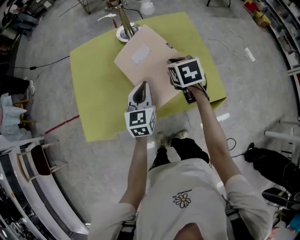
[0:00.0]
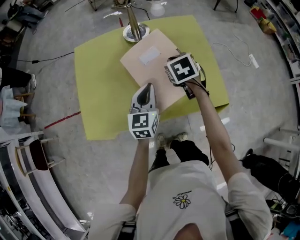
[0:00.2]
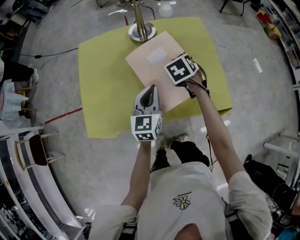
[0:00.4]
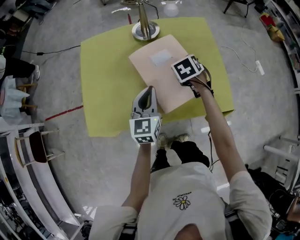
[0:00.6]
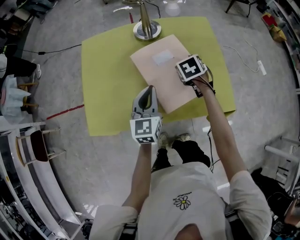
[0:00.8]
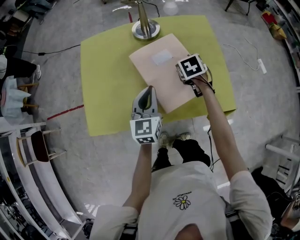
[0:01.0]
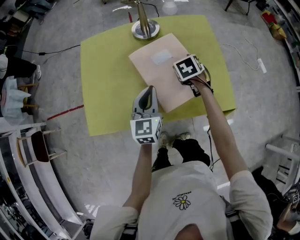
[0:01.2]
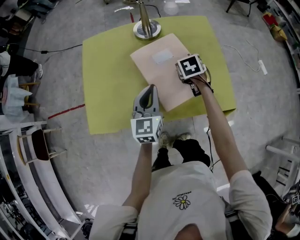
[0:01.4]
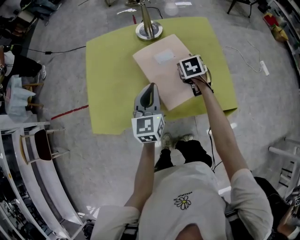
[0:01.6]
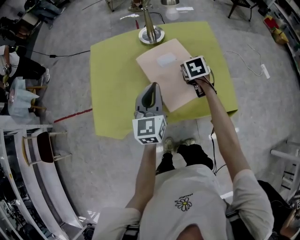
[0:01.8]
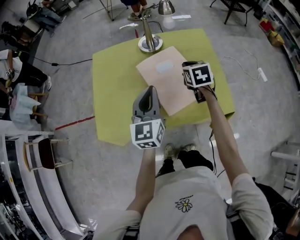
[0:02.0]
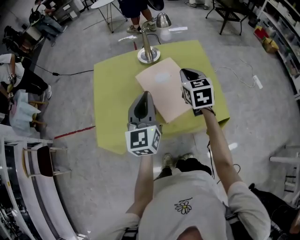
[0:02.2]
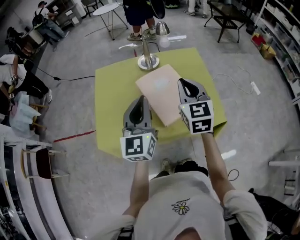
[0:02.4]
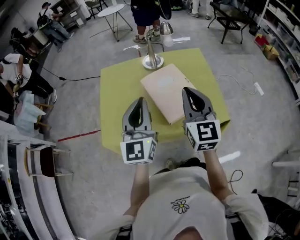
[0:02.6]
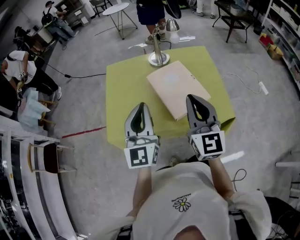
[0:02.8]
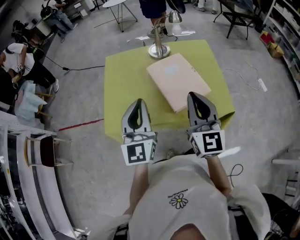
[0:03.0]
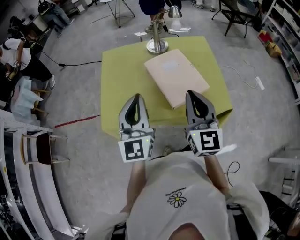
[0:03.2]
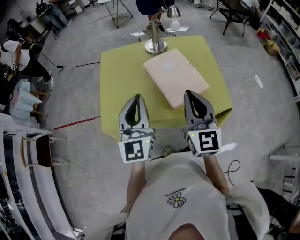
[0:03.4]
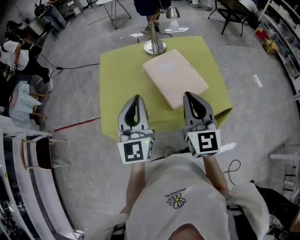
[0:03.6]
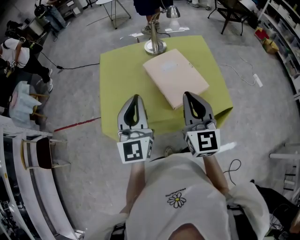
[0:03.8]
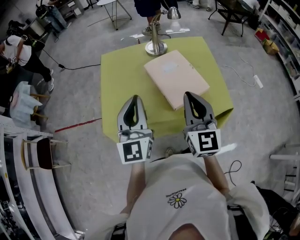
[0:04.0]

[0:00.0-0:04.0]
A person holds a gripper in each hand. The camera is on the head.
0:00.0 to 0:01.4: The right gripper heads downward and forward, covering about 10 cm.
0:01.4 to 0:02.6: The left gripper moves upward and backward, roughly 20 cm, and turns by some 20 degrees. The right gripper is displaced upward and backward by some 35 cm, and angles its fingers upward, by approximately 60 degrees.
0:02.6 to 0:04.0: The left gripper goes roughly 5 cm to the left, while the right gripper goes about 5 cm backward.

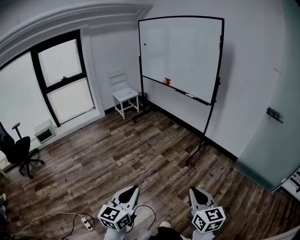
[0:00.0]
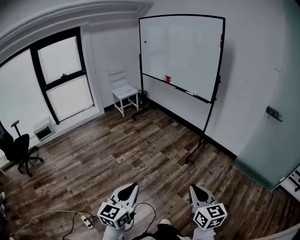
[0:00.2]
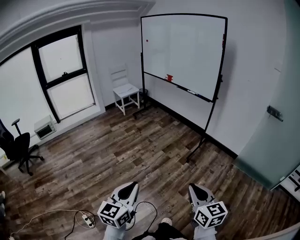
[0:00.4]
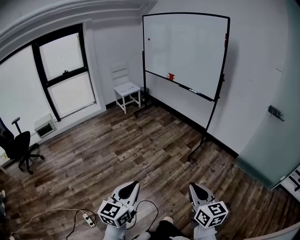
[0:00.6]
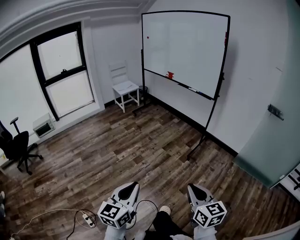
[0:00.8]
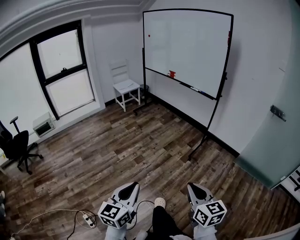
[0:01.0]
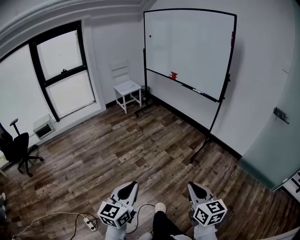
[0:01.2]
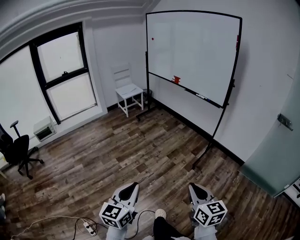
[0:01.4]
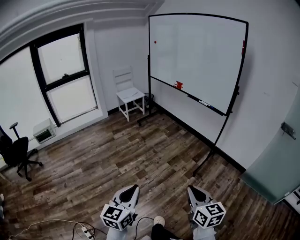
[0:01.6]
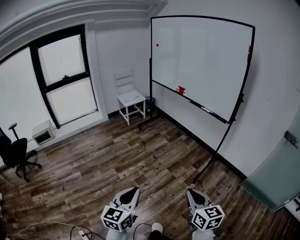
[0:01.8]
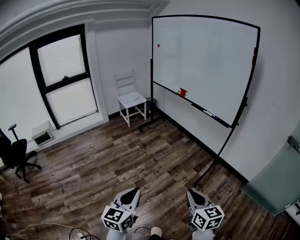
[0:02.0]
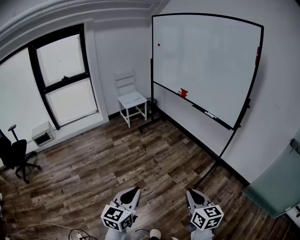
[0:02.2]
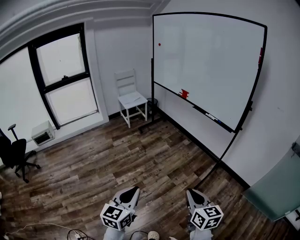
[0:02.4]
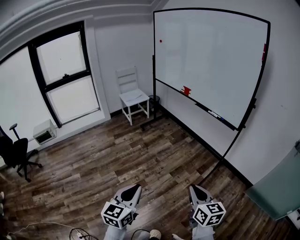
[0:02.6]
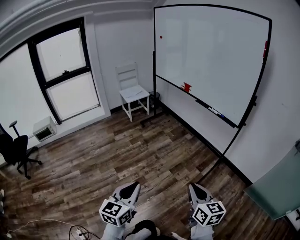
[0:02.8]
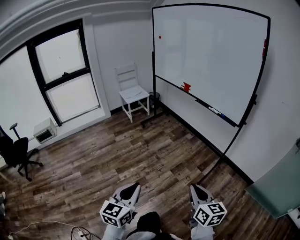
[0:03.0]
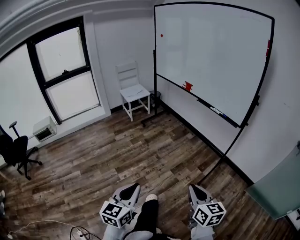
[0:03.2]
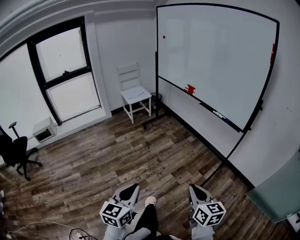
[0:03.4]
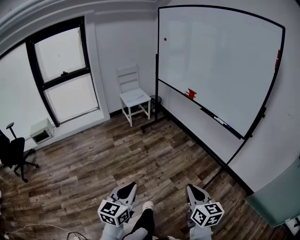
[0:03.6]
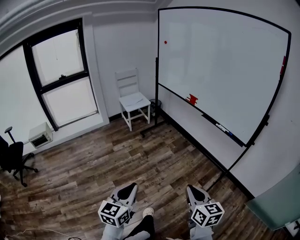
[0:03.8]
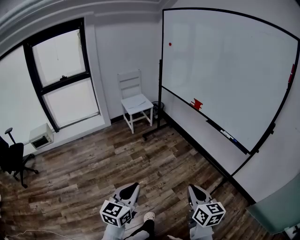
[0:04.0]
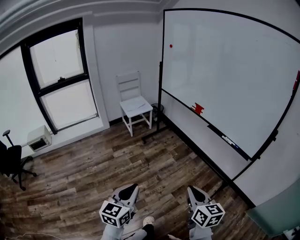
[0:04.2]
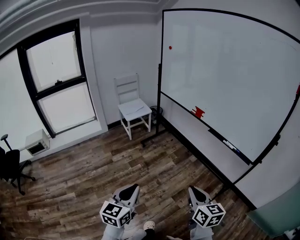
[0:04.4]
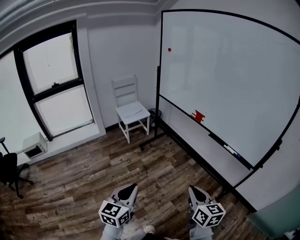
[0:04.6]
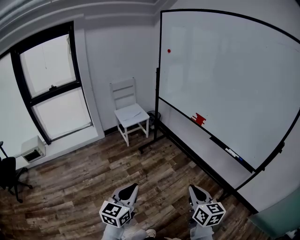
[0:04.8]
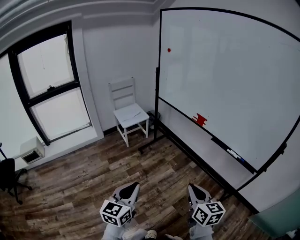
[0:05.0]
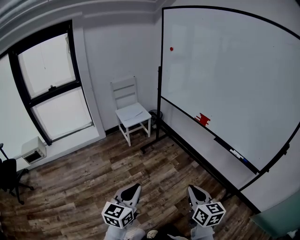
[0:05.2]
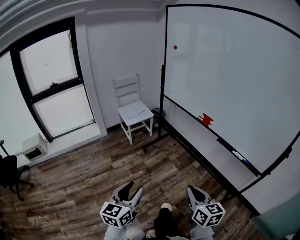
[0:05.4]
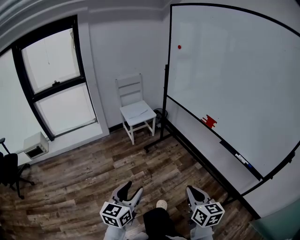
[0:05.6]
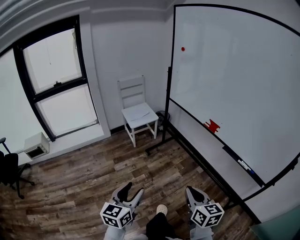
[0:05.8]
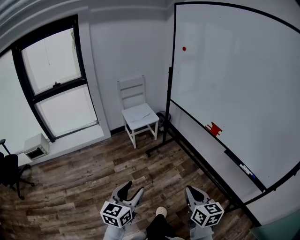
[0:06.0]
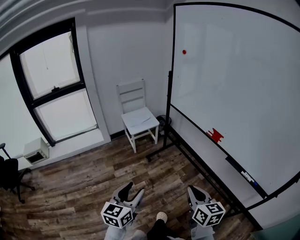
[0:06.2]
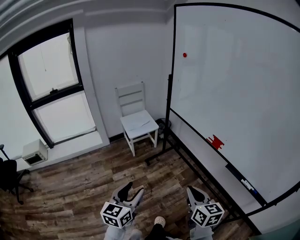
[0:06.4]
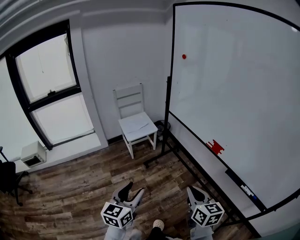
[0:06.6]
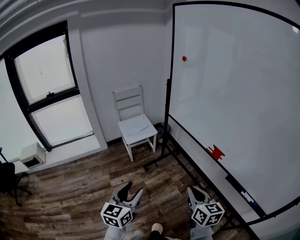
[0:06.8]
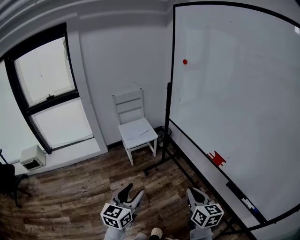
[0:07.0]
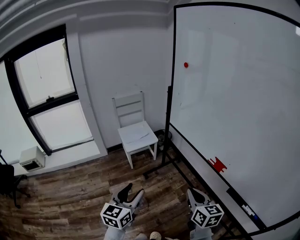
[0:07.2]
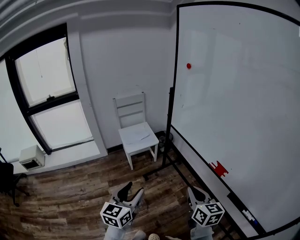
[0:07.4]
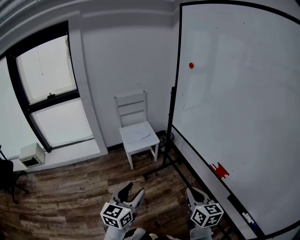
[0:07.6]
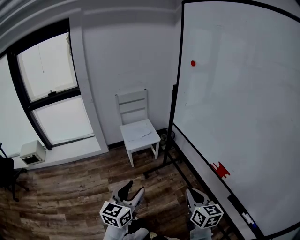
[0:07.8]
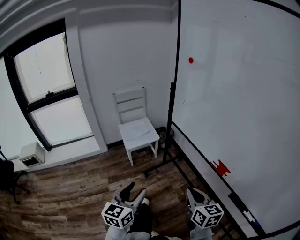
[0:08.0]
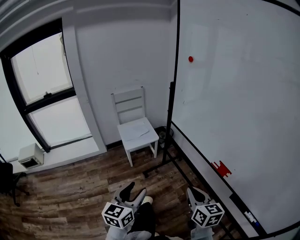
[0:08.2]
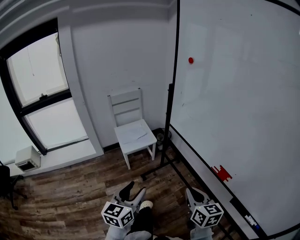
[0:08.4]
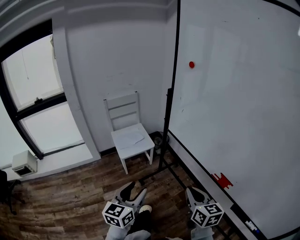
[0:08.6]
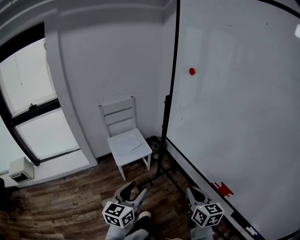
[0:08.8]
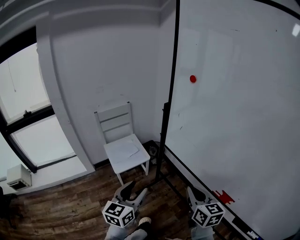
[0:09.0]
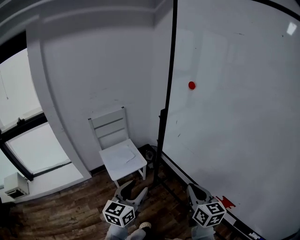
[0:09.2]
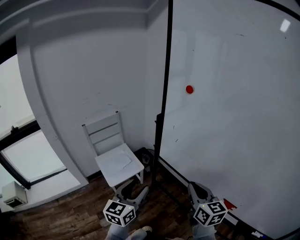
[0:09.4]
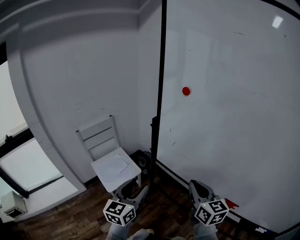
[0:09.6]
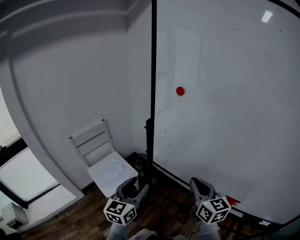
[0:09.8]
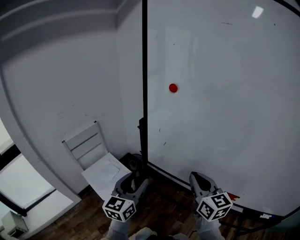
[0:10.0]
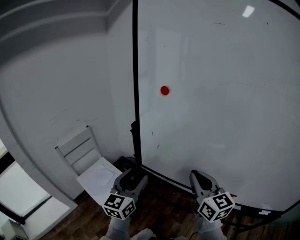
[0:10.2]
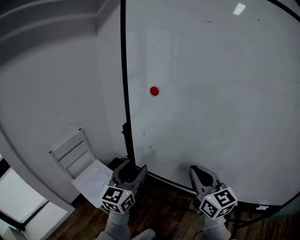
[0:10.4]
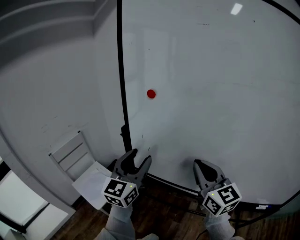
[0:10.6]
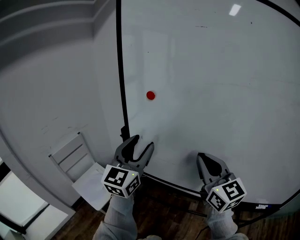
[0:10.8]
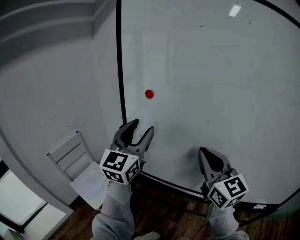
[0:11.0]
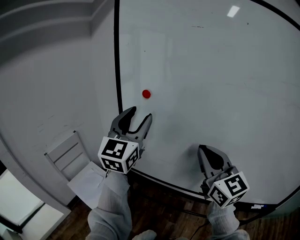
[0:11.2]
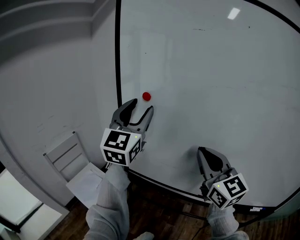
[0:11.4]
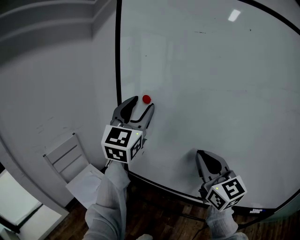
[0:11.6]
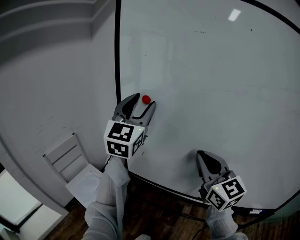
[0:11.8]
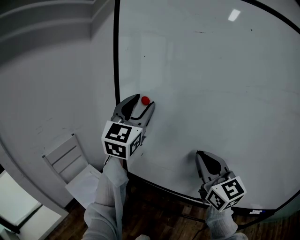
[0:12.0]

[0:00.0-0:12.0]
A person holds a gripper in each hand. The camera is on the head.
0:00.0 to 0:01.6: The two grippers go some 20 cm forward and to the left.
0:01.6 to 0:03.0: Both grippers move forward, approximately 20 cm.
0:03.0 to 0:04.4: Both grippers move forward, some 30 cm.
0:04.4 to 0:06.0: The grippers both shift forward by roughly 20 cm. The left gripper opens its fingers.
0:06.0 to 0:07.6: The grippers both shift forward by some 30 cm.
0:07.6 to 0:09.0: The grippers both shift forward by roughly 20 cm.
0:09.0 to 0:10.4: The left gripper is displaced forward and upward by some 25 cm, and swivels approximately 30 degrees; the right gripper heads upward and forward, covering about 15 cm, and swivels some 30 degrees.
0:10.4 to 0:12.0: The right gripper travels upward by approximately 10 cm. Meanwhile the left gripper travels upward and forward by approximately 25 cm, and changes its angle by some 20 degrees.

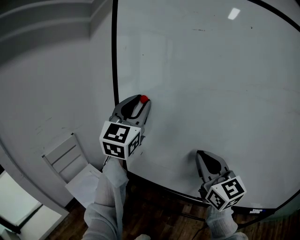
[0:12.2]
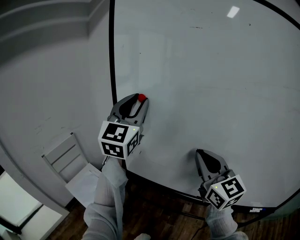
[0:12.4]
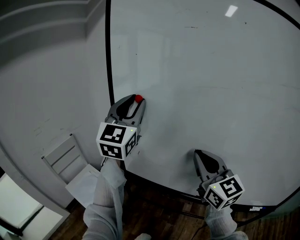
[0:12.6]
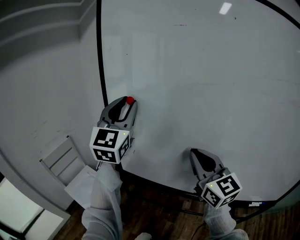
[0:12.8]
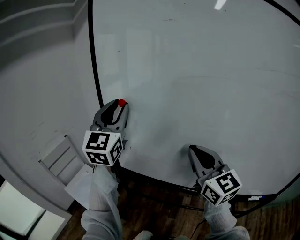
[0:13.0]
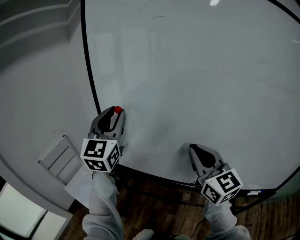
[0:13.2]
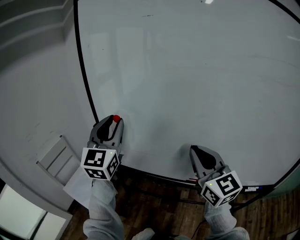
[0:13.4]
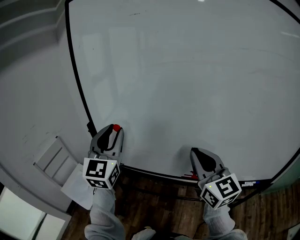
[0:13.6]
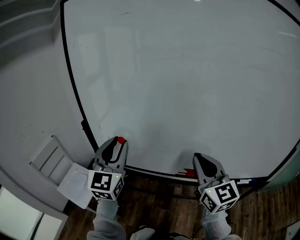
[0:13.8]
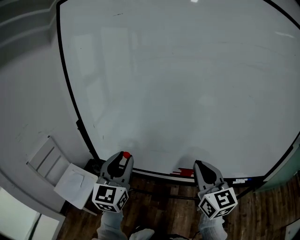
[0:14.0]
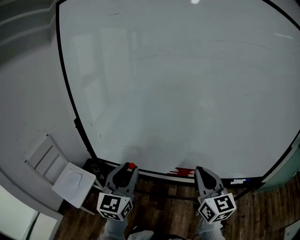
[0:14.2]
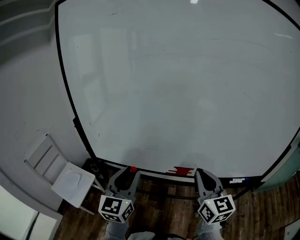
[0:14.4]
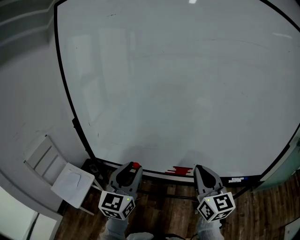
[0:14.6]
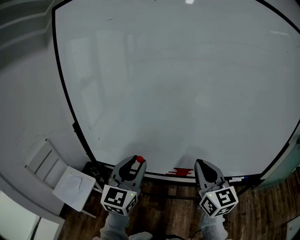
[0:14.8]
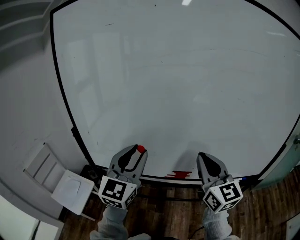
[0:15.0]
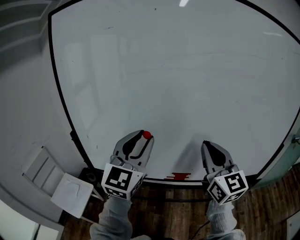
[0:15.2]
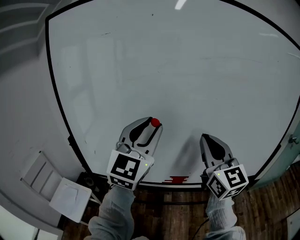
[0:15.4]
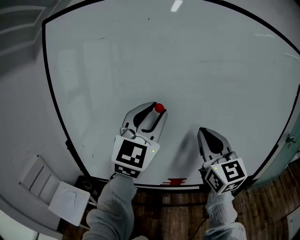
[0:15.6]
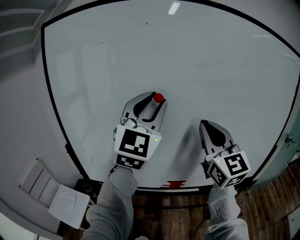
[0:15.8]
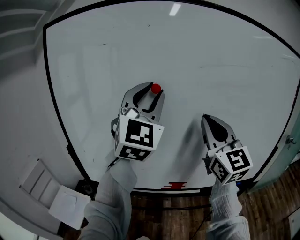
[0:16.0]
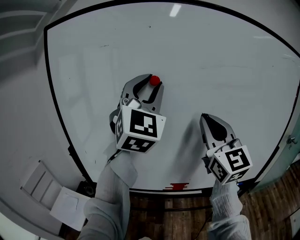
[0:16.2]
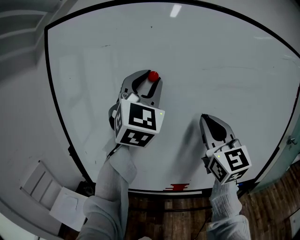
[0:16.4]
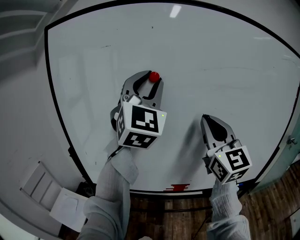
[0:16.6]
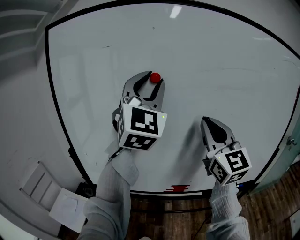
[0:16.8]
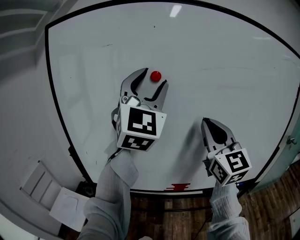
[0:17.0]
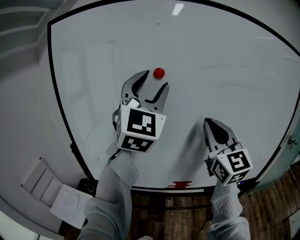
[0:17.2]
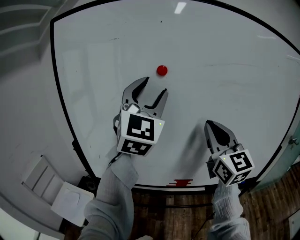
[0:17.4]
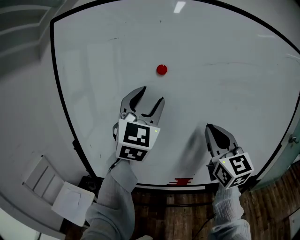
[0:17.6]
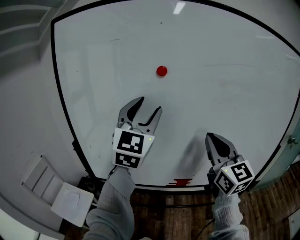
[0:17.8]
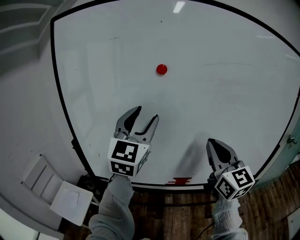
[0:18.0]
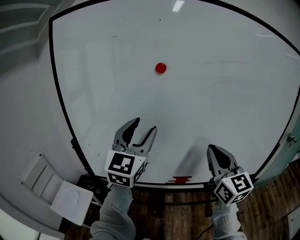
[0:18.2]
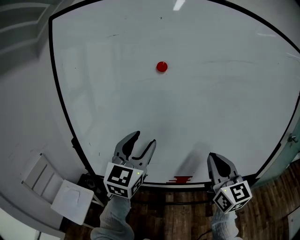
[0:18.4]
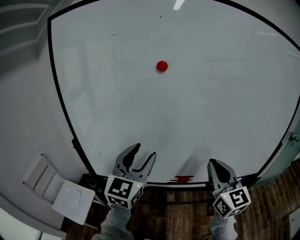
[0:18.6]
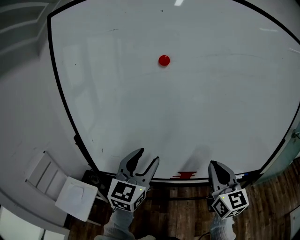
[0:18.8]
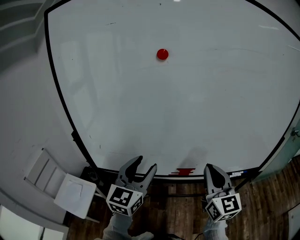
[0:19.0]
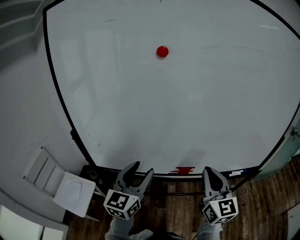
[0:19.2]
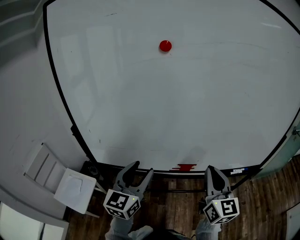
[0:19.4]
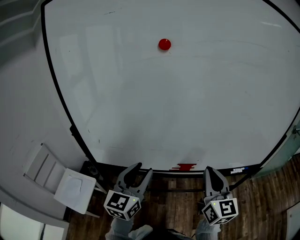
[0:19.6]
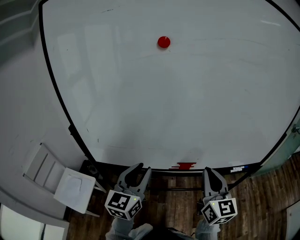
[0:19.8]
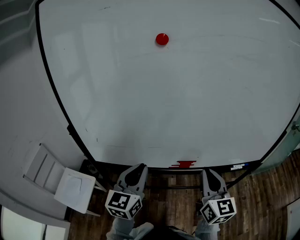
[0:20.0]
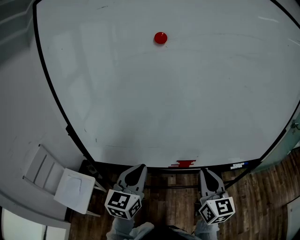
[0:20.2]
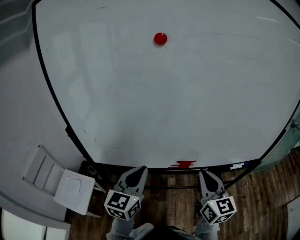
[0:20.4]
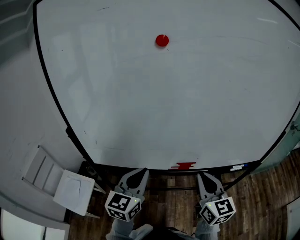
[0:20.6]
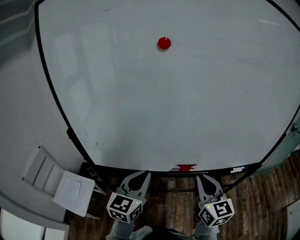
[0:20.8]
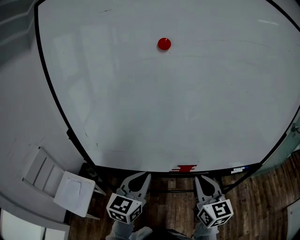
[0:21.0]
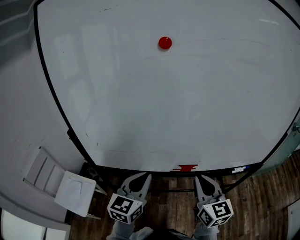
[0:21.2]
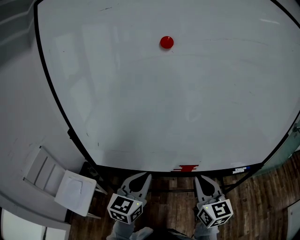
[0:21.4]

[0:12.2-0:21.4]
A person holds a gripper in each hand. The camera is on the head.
0:12.2 to 0:13.8: The left gripper goes roughly 20 cm downward, backward and to the right; the right gripper heads to the right, backward and downward, covering some 20 cm.
0:13.8 to 0:15.2: The left gripper goes roughly 15 cm to the right and upward. The right gripper moves upward and to the right, approximately 10 cm.
0:15.2 to 0:16.8: The left gripper travels upward by roughly 20 cm, and changes its angle by some 30 degrees. Meanwhile the right gripper goes about 10 cm upward.
0:16.8 to 0:18.4: The right gripper travels downward and backward by some 15 cm. The left gripper shifts some 20 cm downward, swivels about 30 degrees, and opens up.
0:18.4 to 0:19.8: The grippers both shift downward by approximately 15 cm. The left gripper closes.
0:19.8 to 0:21.4: The right gripper shifts by about 5 cm, while the left gripper closes.
